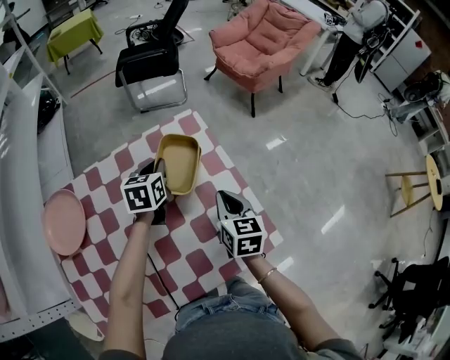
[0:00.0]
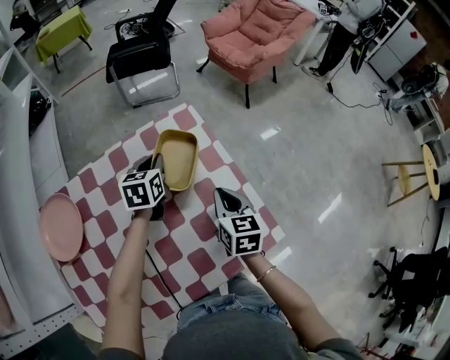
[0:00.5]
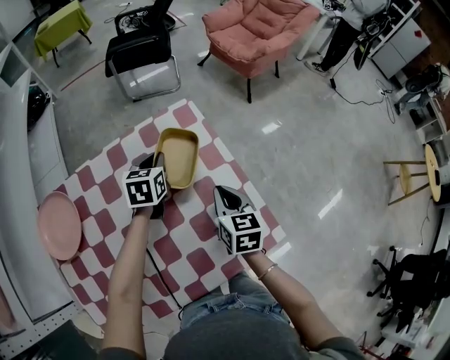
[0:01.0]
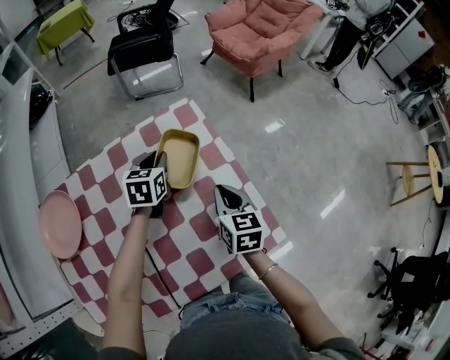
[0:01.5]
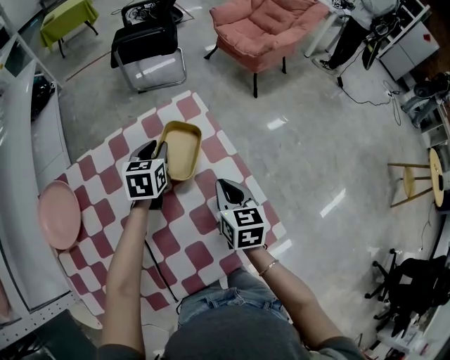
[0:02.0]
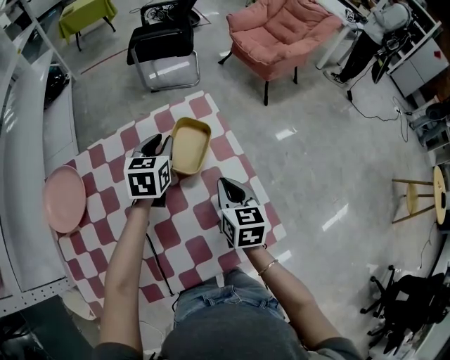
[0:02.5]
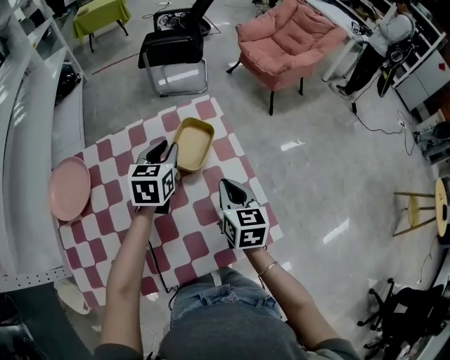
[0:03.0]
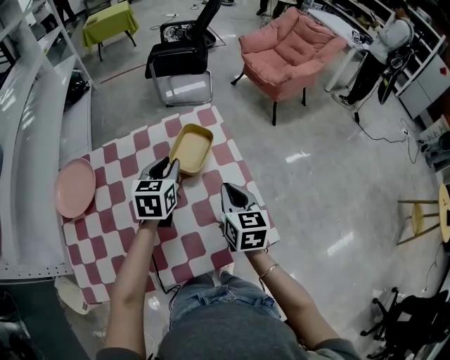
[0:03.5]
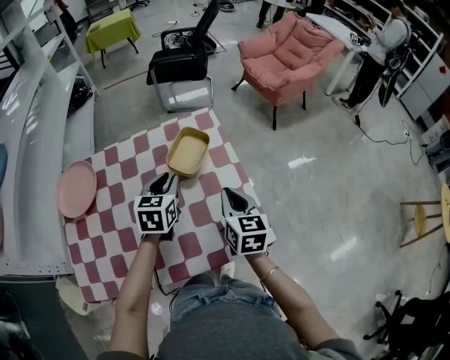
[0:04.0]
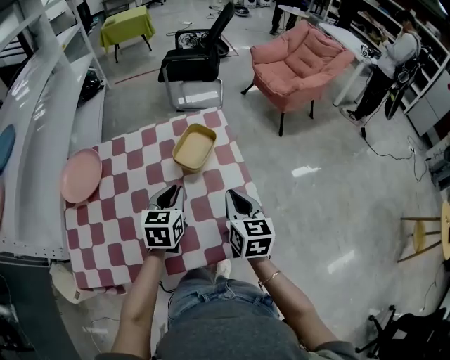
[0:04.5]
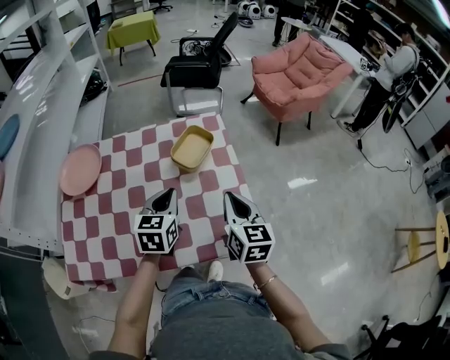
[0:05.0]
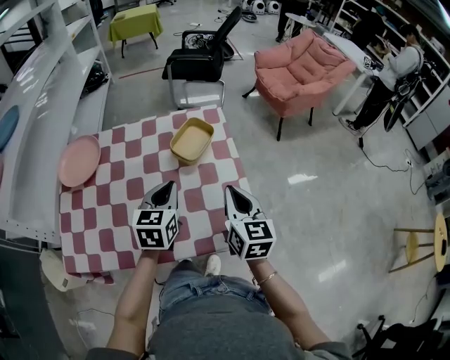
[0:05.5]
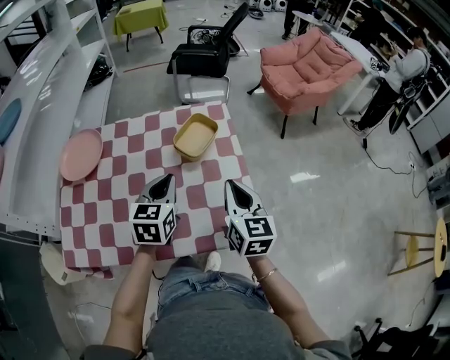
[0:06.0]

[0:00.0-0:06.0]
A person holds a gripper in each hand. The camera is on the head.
0:00.0 to 0:02.0: The grippers make only small movements.
0:02.0 to 0:04.0: The right gripper shifts roughly 10 cm backward and upward. The left gripper goes roughly 15 cm backward.
0:04.0 to 0:06.0: The left gripper travels backward by about 10 cm, while the right gripper changes place by some 5 cm.

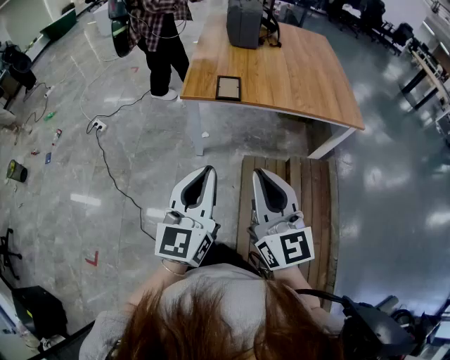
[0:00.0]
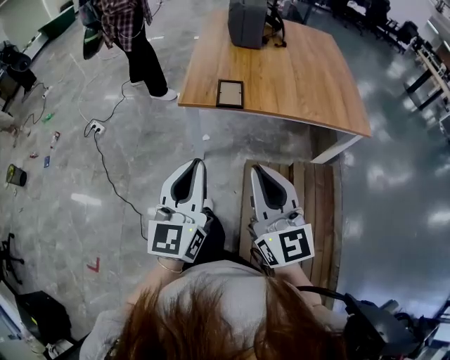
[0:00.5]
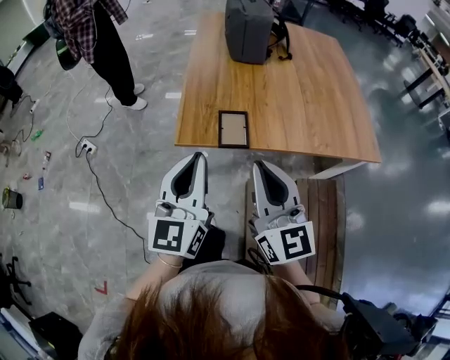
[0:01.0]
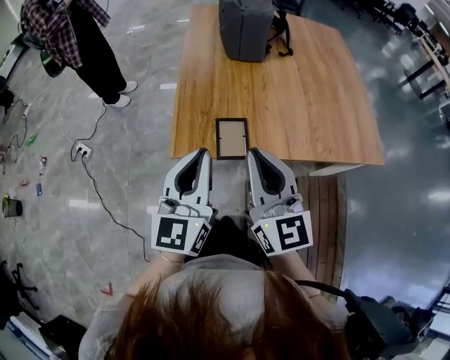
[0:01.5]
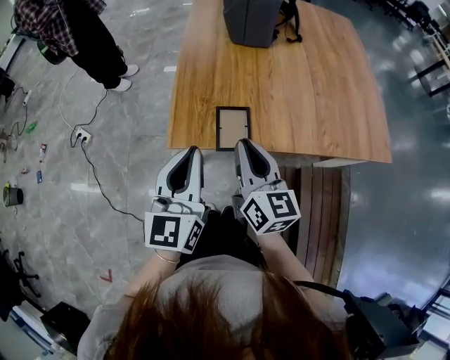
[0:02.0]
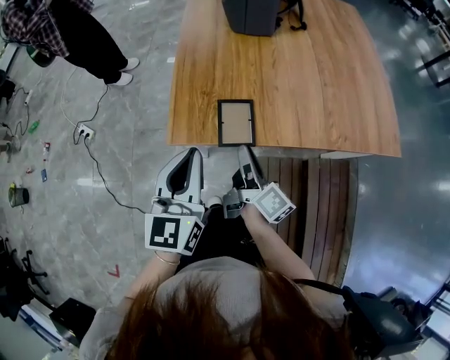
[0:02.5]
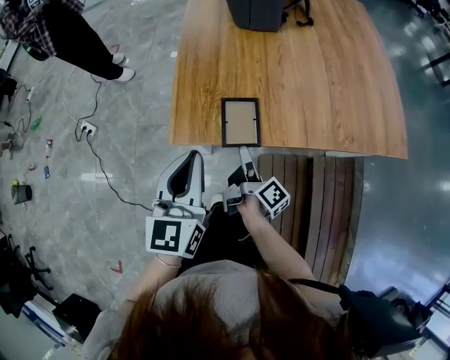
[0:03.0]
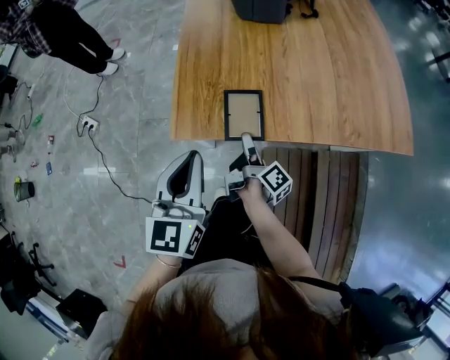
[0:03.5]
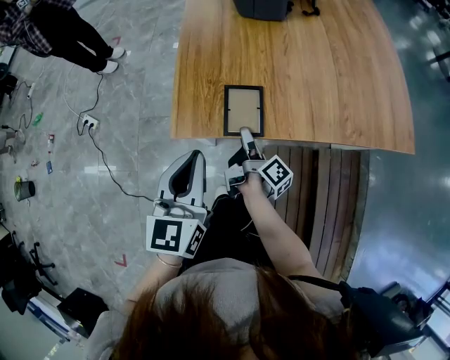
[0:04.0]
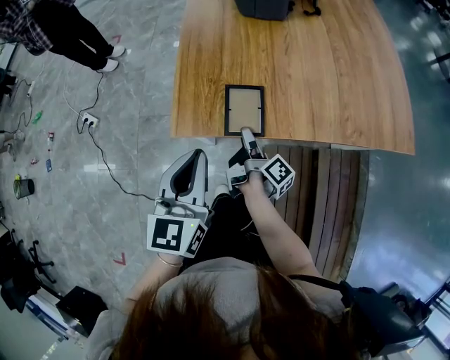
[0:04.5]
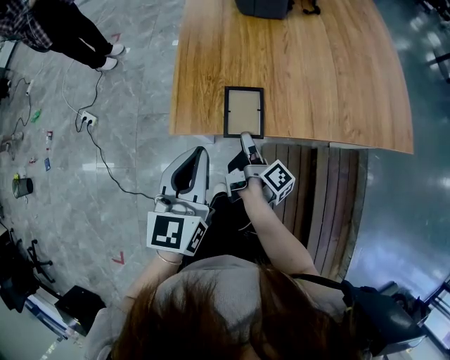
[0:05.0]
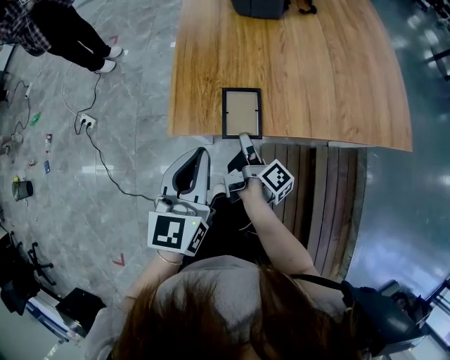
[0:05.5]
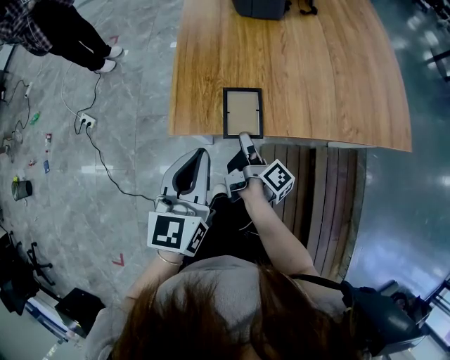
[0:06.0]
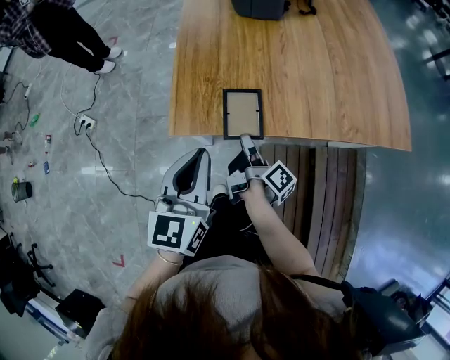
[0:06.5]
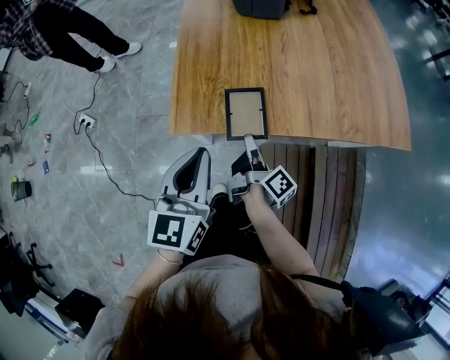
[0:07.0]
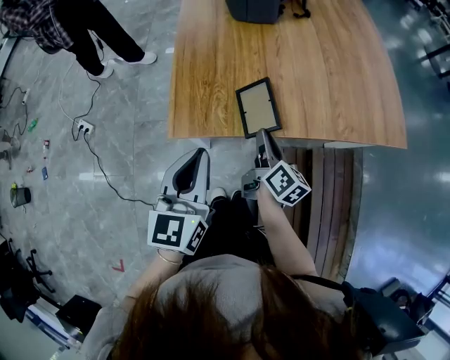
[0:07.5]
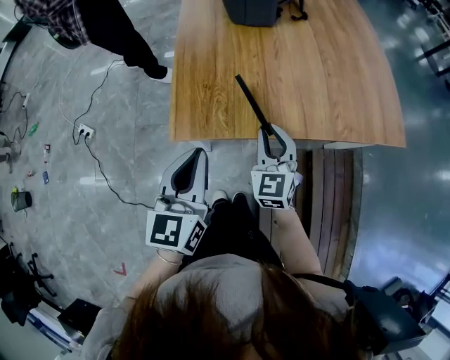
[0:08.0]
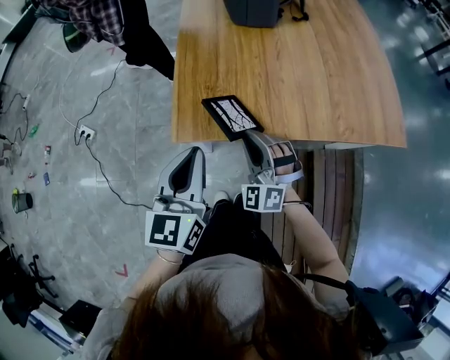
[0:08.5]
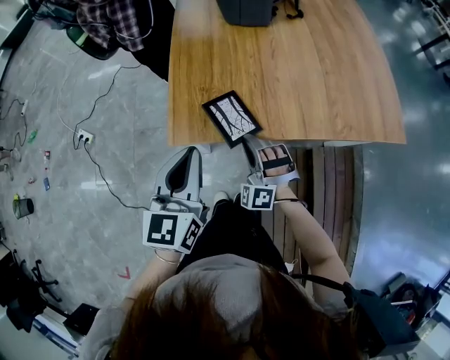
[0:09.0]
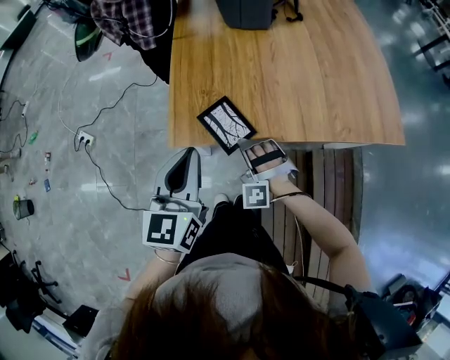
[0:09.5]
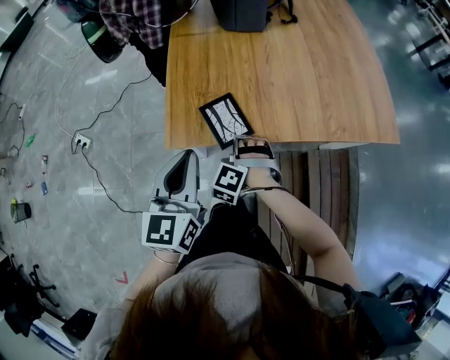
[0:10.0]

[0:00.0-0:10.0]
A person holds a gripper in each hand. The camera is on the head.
0:00.0 to 0:02.0: The pair of grippers is taken forward, approximately 40 cm. The right gripper turns by roughly 20 degrees.
0:02.0 to 0:04.0: The right gripper shifts some 20 cm downward, twists roughly 70 degrees clockwise, seen from behind, and opens. The left gripper travels downward by about 5 cm.
0:04.0 to 0:06.0: The right gripper closes.
0:06.0 to 0:08.0: The right gripper shifts some 10 cm upward, and rolls counterclockwise, seen from behind, by about 110 degrees.
0:08.0 to 0:10.0: The right gripper goes roughly 10 cm downward and to the left, and tips its fingers downward by roughly 30 degrees.

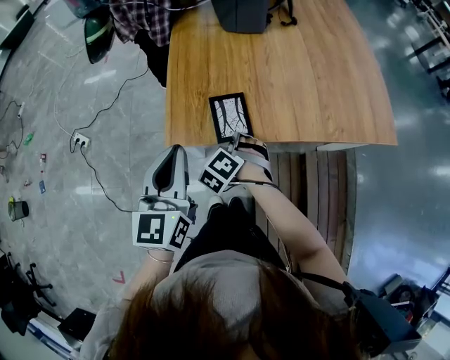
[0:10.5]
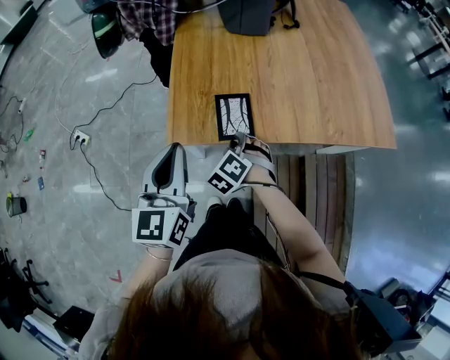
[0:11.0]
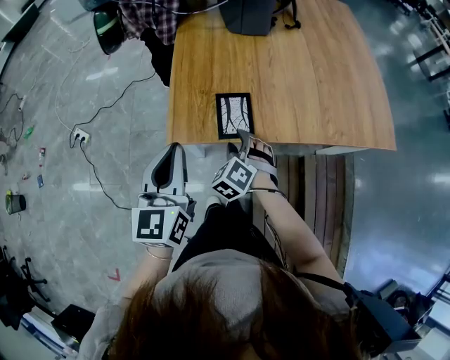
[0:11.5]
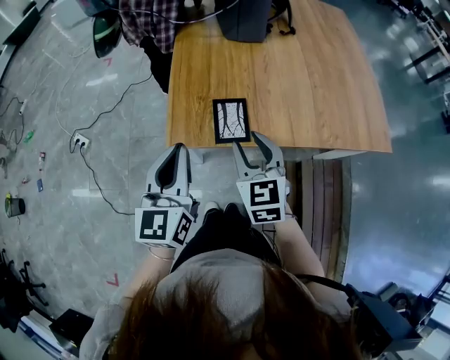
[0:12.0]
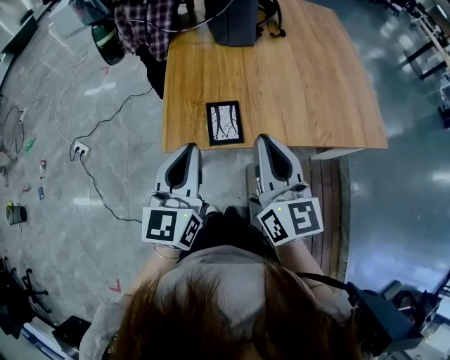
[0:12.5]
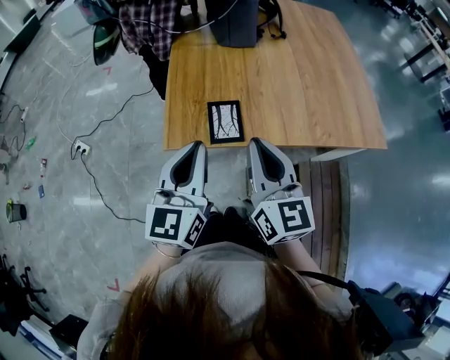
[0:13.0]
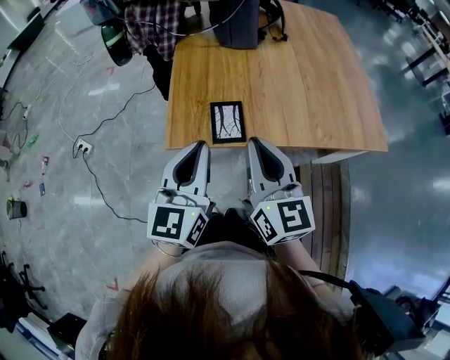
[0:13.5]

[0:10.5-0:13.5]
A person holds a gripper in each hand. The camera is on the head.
0:10.5 to 0:12.0: The right gripper goes roughly 15 cm upward, tips its fingers upward by about 30 degrees, and opens.
0:12.0 to 0:13.5: The left gripper goes approximately 5 cm to the right; the right gripper goes about 10 cm upward and backward, rotates about 30 degrees, and closes.

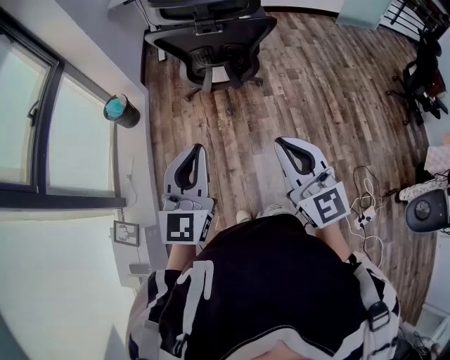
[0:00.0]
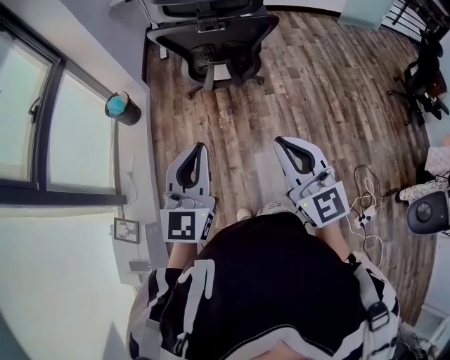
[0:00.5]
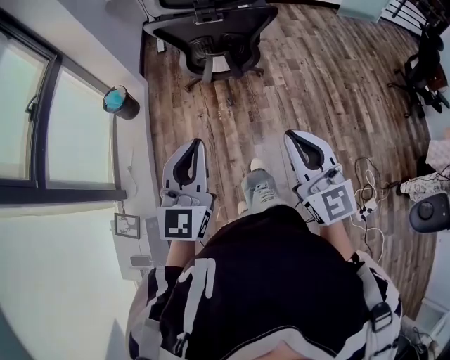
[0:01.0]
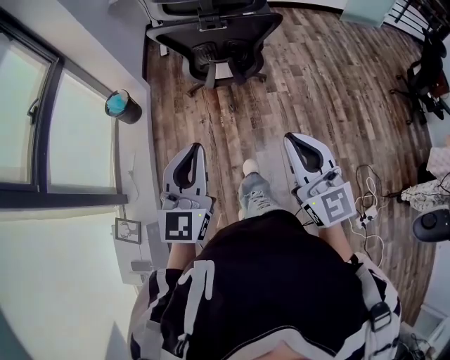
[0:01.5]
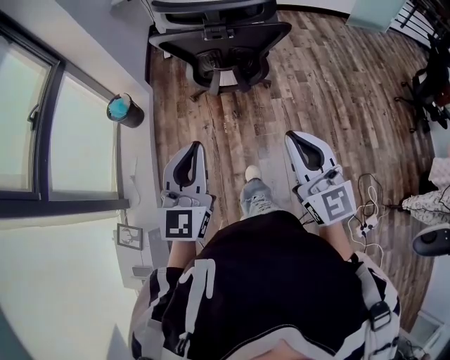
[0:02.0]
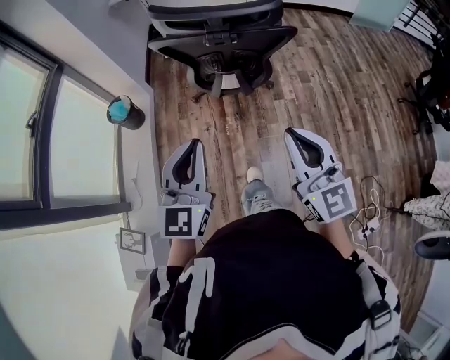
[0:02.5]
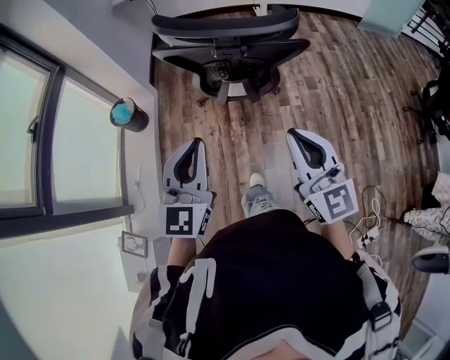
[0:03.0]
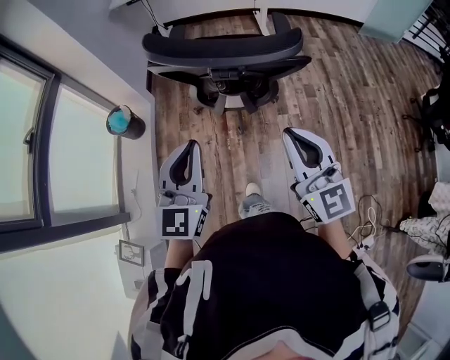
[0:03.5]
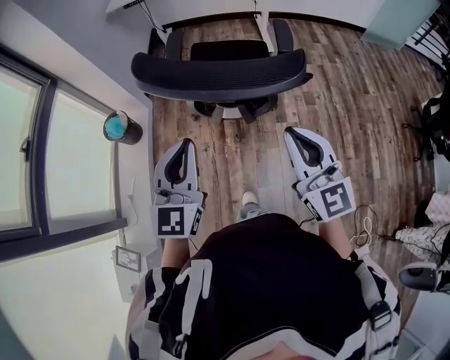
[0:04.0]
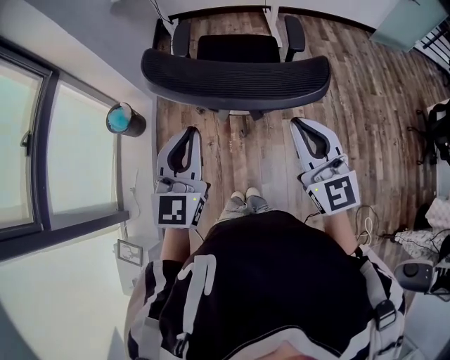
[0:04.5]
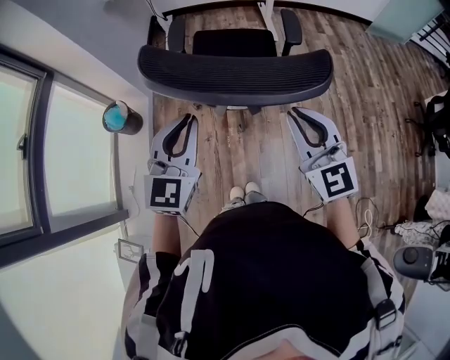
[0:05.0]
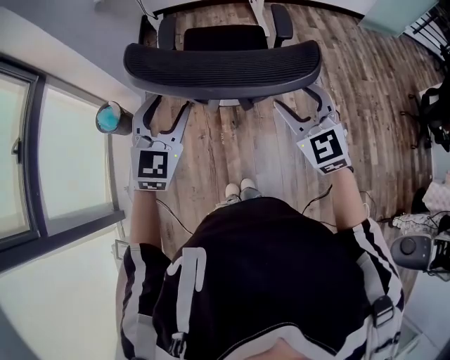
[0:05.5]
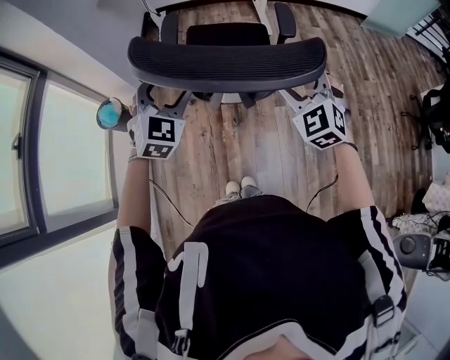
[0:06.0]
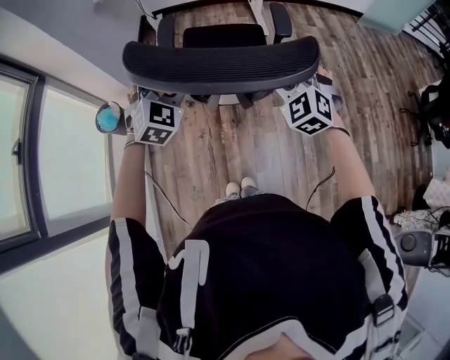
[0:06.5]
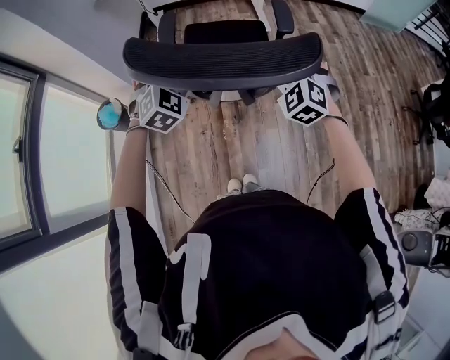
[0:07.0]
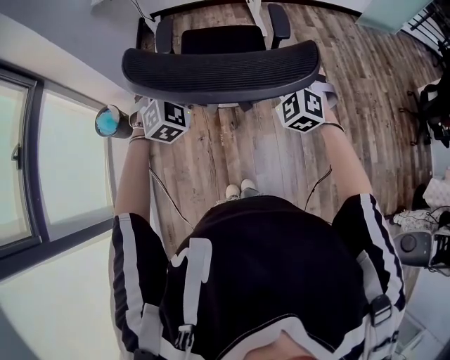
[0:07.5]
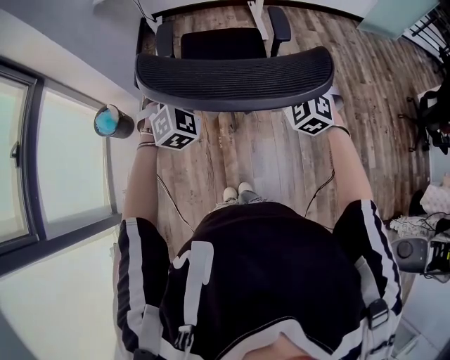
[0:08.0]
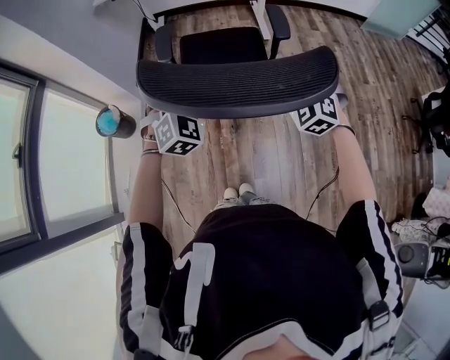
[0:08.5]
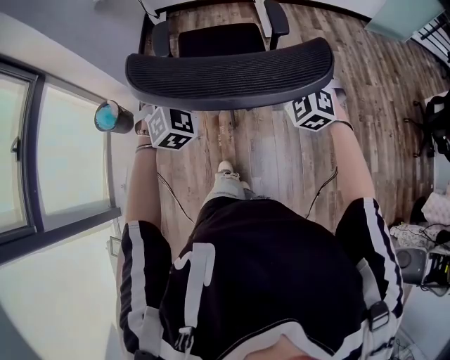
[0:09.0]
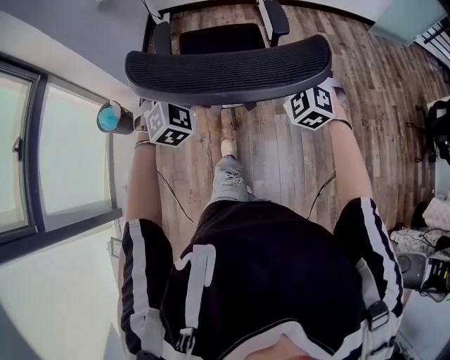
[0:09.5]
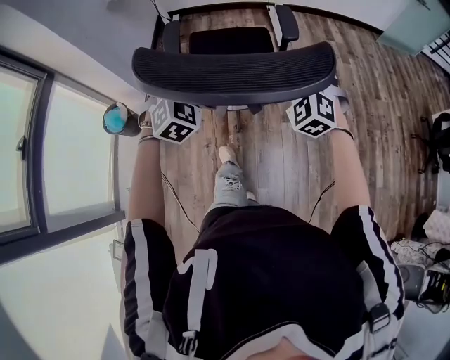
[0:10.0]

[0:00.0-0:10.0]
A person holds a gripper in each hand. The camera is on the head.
0:00.0 to 0:02.0: Both grippers travel together forward, some 10 cm.
0:02.0 to 0:04.0: The two grippers go about 25 cm forward.
0:04.0 to 0:06.0: The right gripper moves forward and downward, approximately 15 cm, swivels approximately 40 degrees, and opens its fingers; the left gripper shifts approximately 15 cm forward, turns by about 40 degrees, and opens its fingers.
0:06.0 to 0:08.0: The right gripper goes some 5 cm forward. Meanwhile the left gripper ends up roughly 5 cm from where it was.
0:08.0 to 0:10.0: The two grippers go approximately 5 cm forward.
